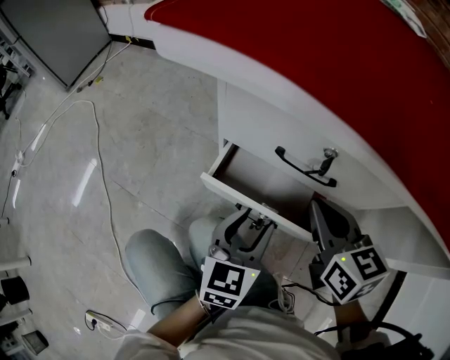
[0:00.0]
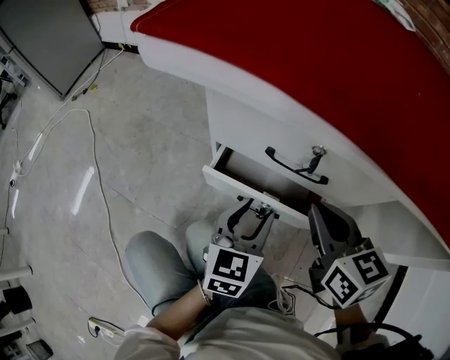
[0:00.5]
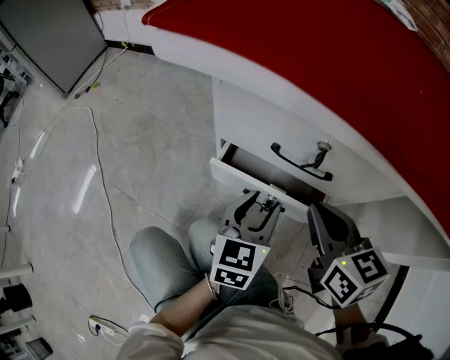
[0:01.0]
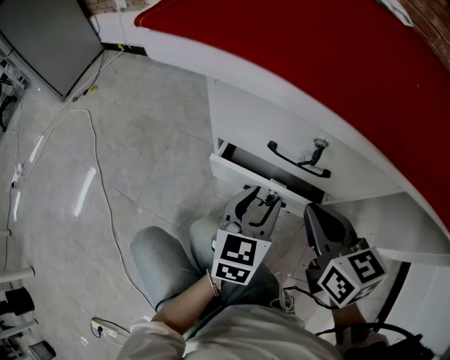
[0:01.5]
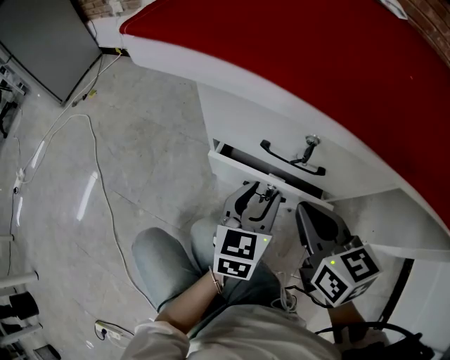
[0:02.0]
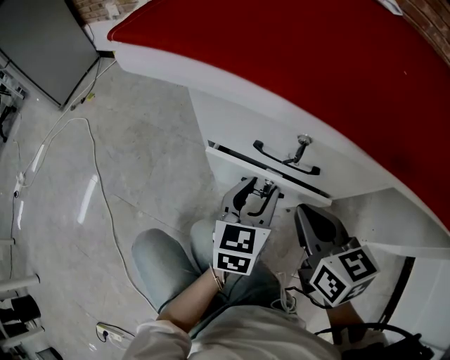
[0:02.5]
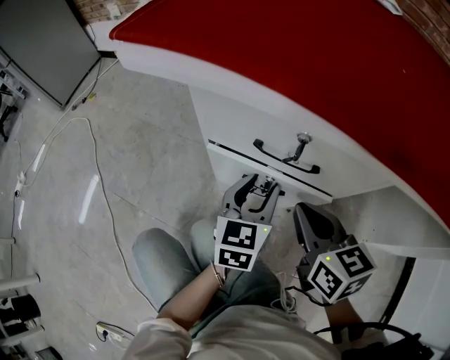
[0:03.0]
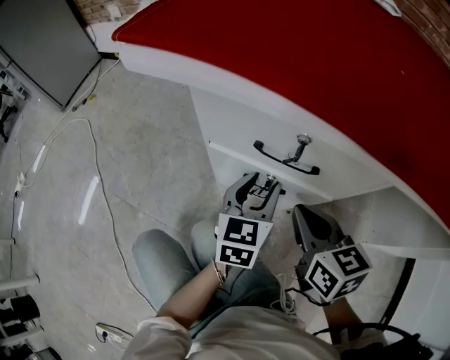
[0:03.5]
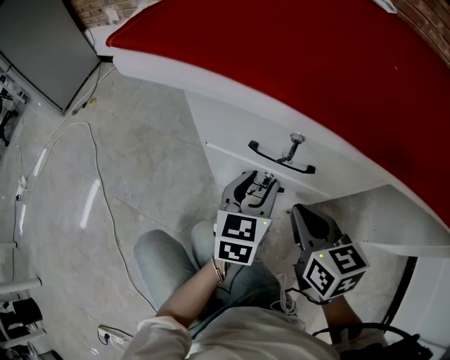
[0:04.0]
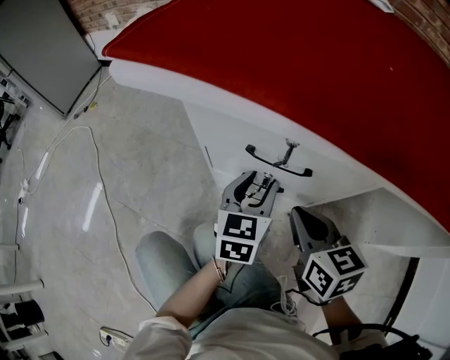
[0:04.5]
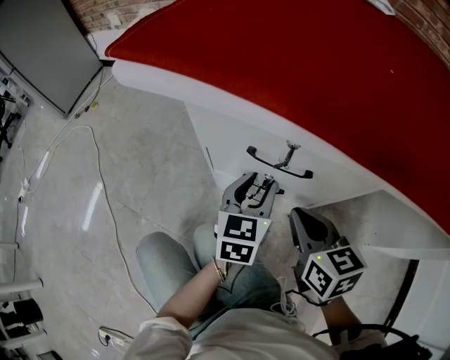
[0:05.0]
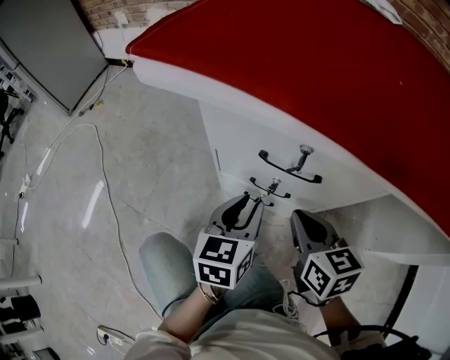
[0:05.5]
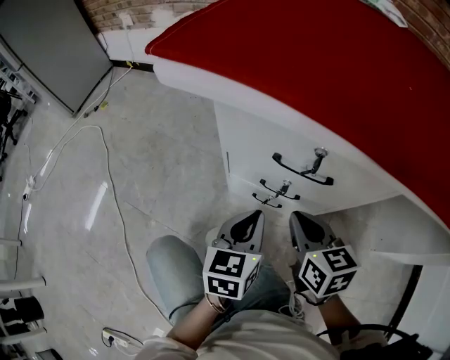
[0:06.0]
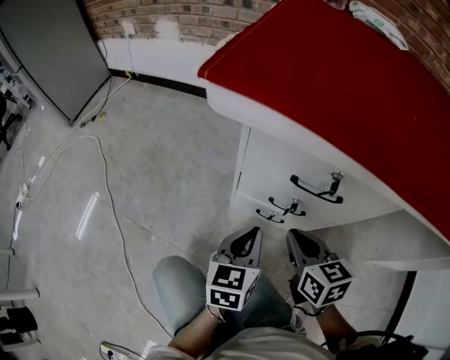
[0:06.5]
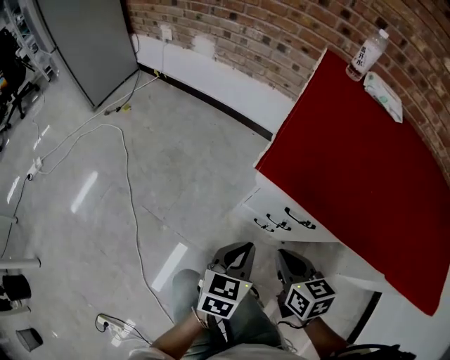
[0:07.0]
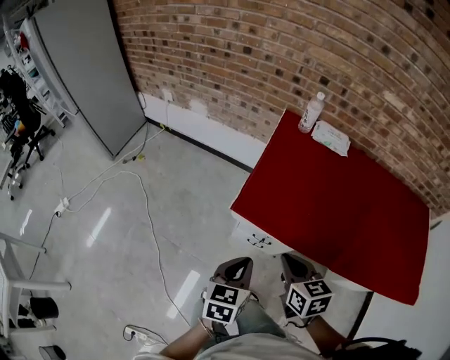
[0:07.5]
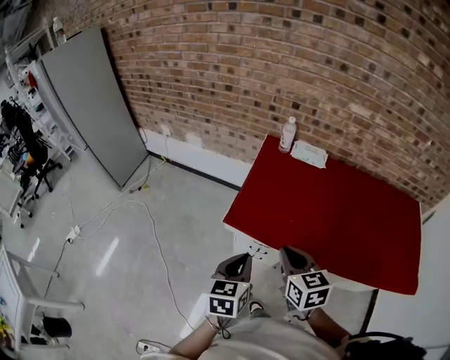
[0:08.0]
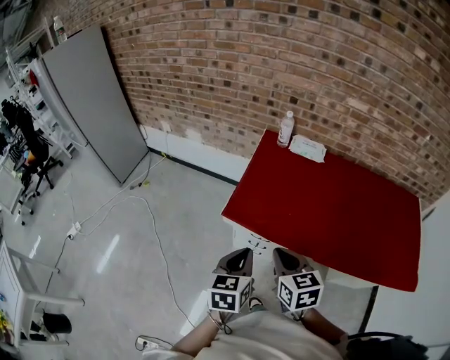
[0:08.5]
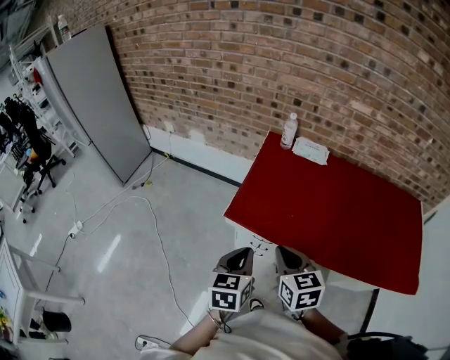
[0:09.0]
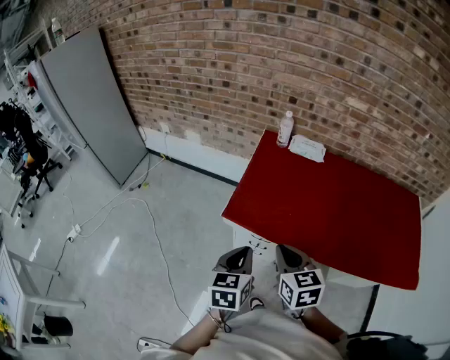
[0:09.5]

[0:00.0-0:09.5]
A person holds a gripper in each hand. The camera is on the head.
0:00.0 to 0:02.0: The left gripper goes roughly 5 cm forward.
0:02.0 to 0:04.0: The grippers move only a little.
0:04.0 to 0:05.5: The left gripper moves approximately 5 cm.
0:05.5 to 0:07.5: Both grippers travel together upward, about 40 cm. The left gripper closes its fingers.
0:07.5 to 0:09.5: The grippers both shift upward by roughly 10 cm.

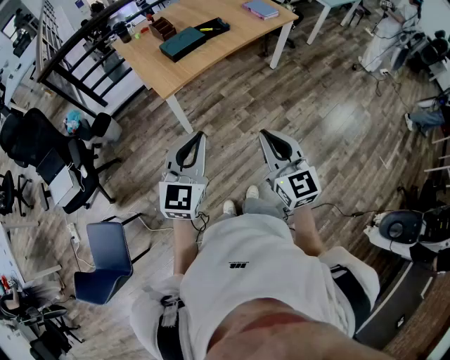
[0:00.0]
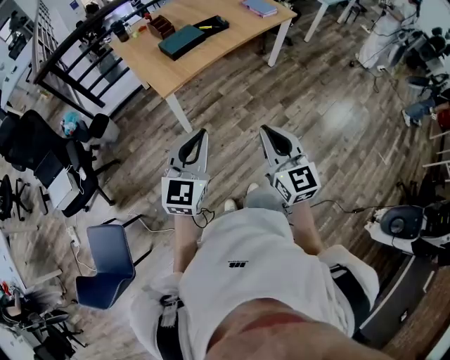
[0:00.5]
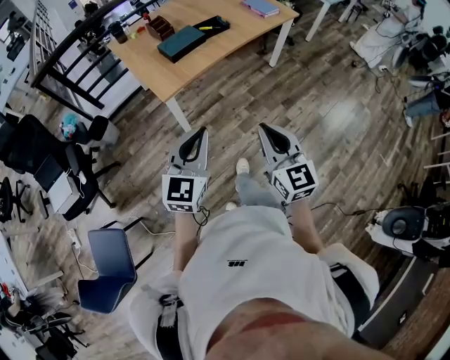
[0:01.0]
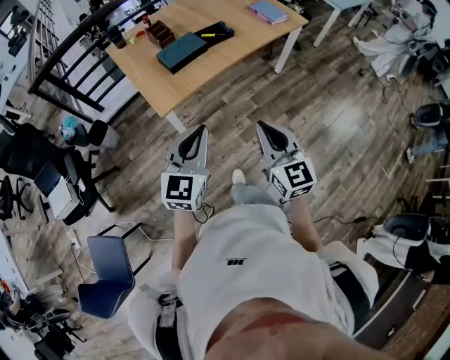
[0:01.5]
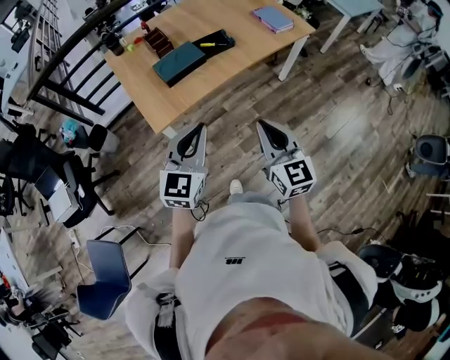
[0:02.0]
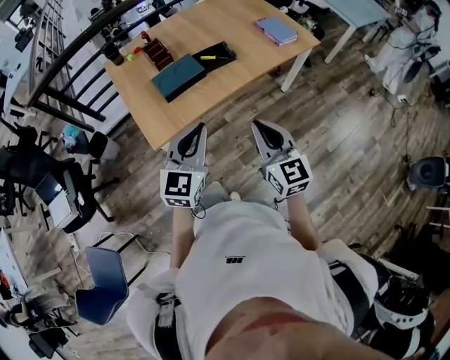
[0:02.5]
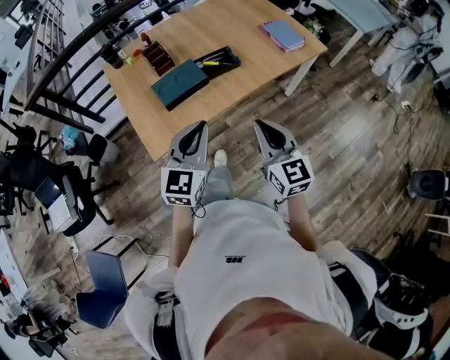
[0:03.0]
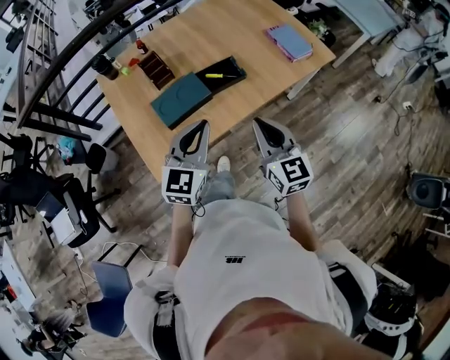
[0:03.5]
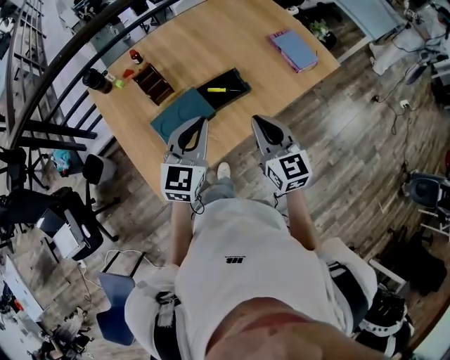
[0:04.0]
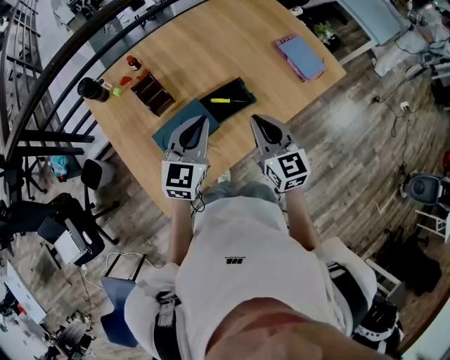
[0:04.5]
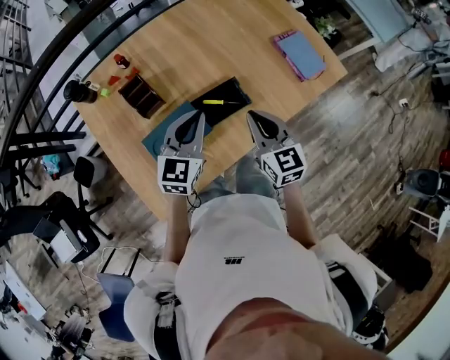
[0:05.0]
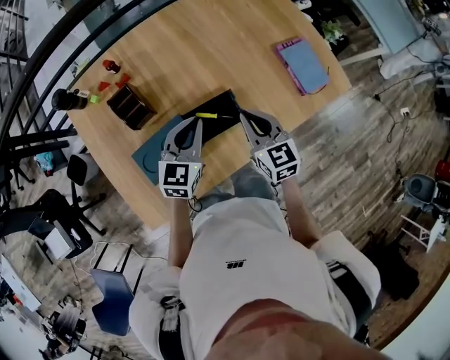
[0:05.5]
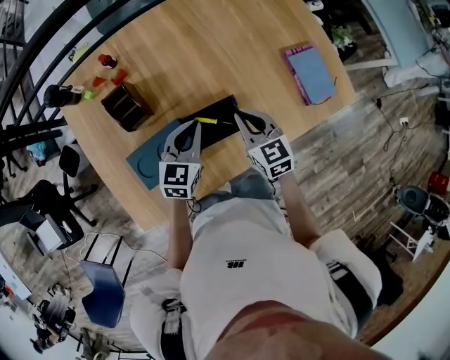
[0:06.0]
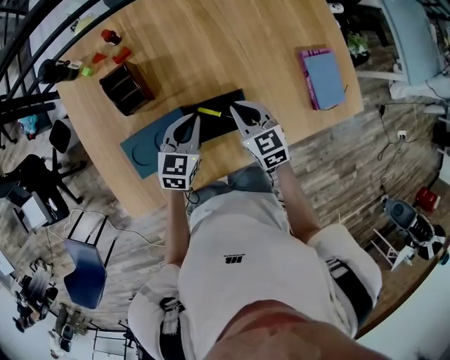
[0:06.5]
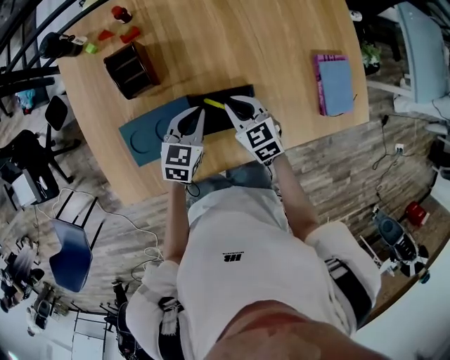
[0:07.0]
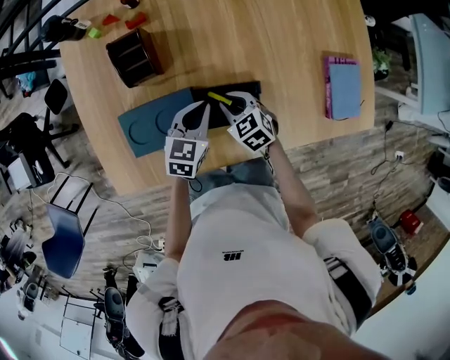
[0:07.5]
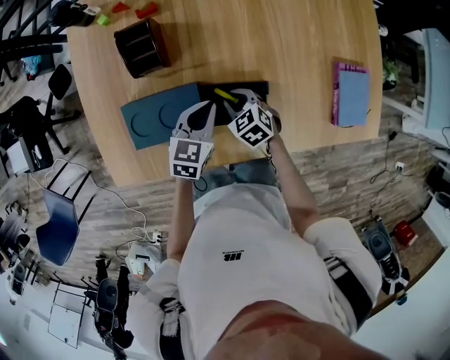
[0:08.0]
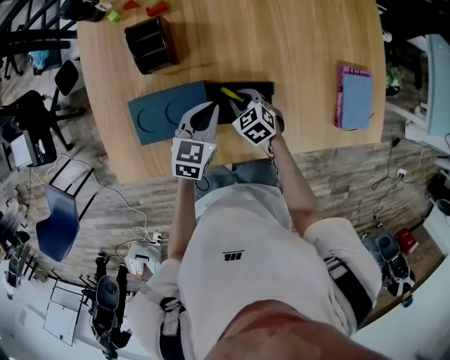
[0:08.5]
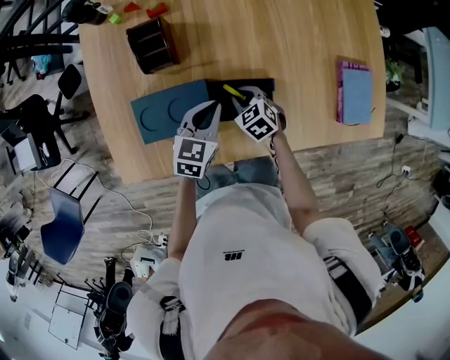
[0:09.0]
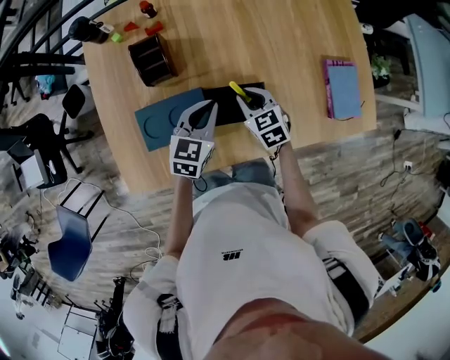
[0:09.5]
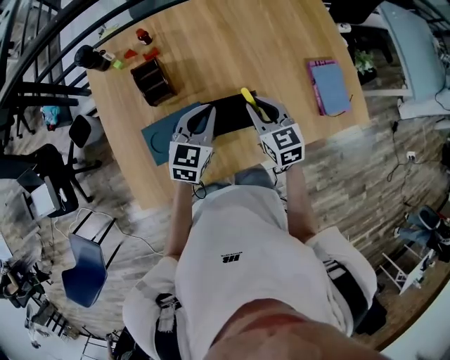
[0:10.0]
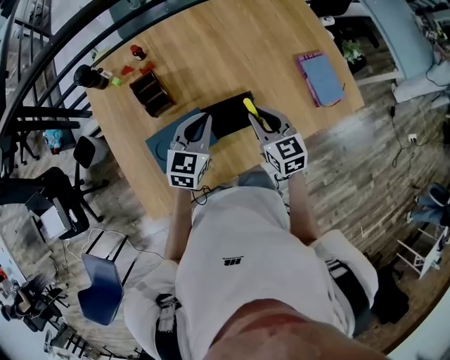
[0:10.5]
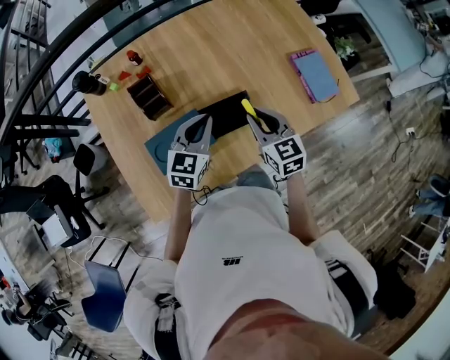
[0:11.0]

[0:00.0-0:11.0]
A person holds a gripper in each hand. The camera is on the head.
0:00.0 to 0:02.0: Both grippers move forward, approximately 30 cm.
0:02.0 to 0:03.5: The grippers both shift forward by roughly 30 cm.
0:03.5 to 0:05.5: The two grippers go approximately 35 cm forward.
0:05.5 to 0:07.5: The left gripper travels downward by about 15 cm, and swivels about 20 degrees. The right gripper heads downward and to the left, covering roughly 25 cm, and swivels approximately 50 degrees.
0:07.5 to 0:09.0: There are only small adjustments of the grippers.
0:09.0 to 0:11.0: The left gripper shifts approximately 15 cm upward, and swivels some 20 degrees. Meanwhile the right gripper shifts about 25 cm upward, and tilts its fingers roughly 30 degrees upward.

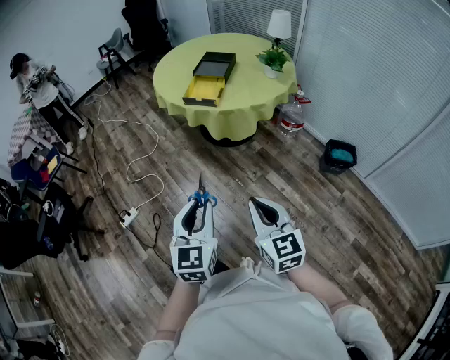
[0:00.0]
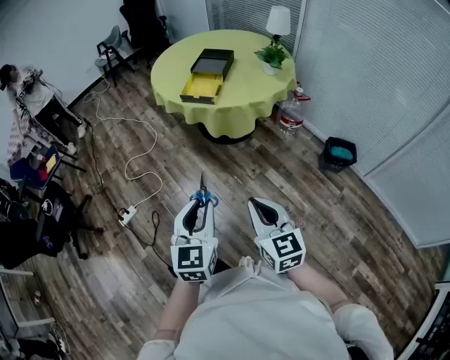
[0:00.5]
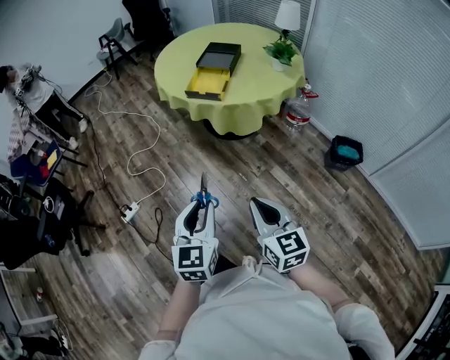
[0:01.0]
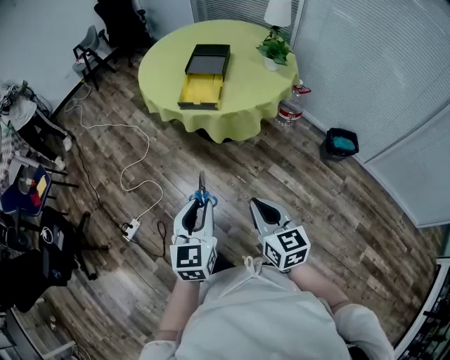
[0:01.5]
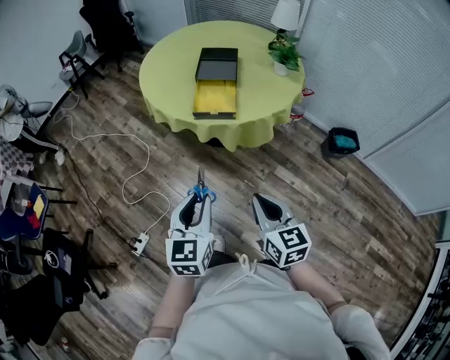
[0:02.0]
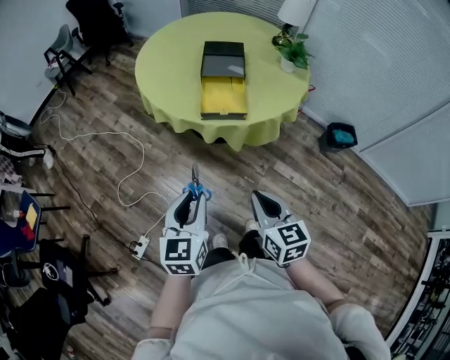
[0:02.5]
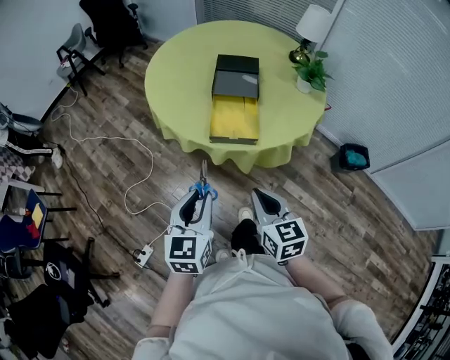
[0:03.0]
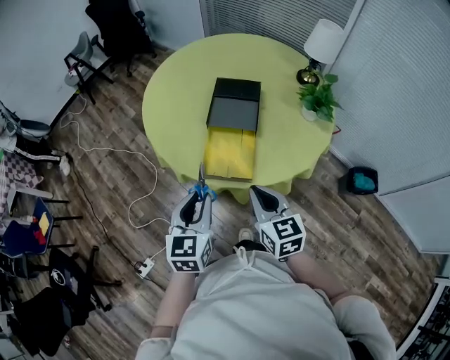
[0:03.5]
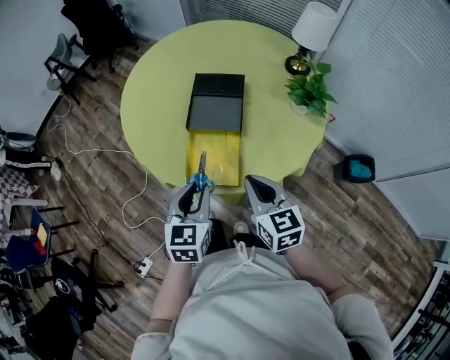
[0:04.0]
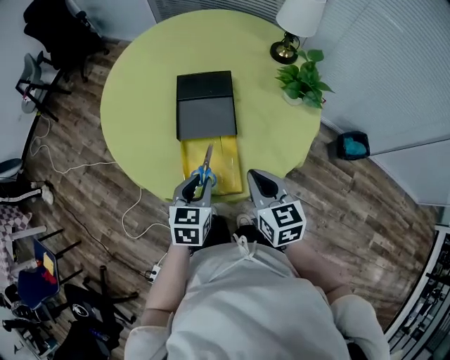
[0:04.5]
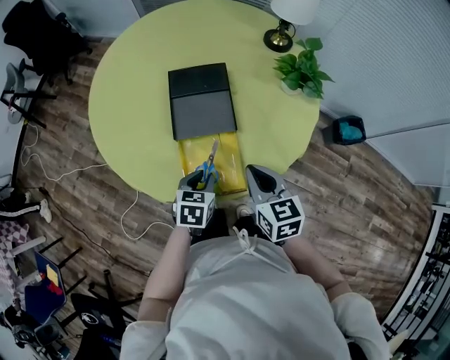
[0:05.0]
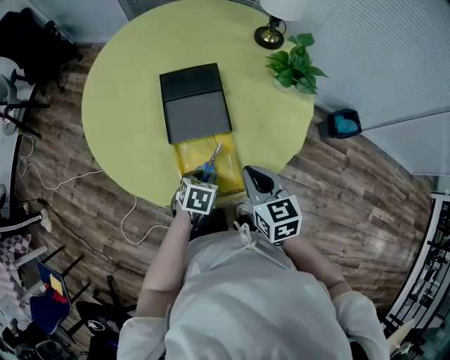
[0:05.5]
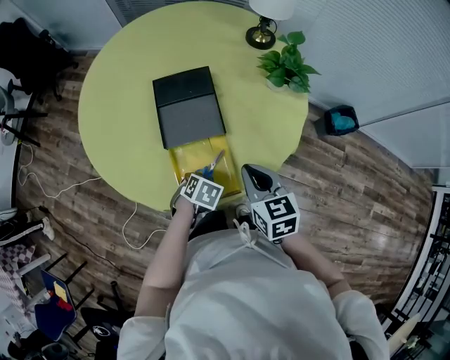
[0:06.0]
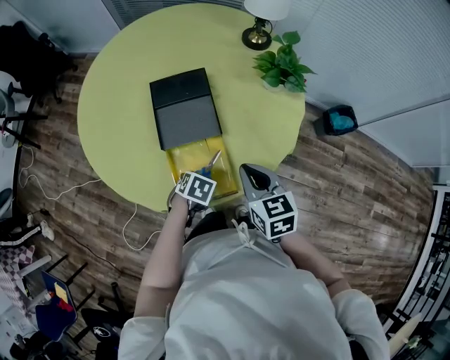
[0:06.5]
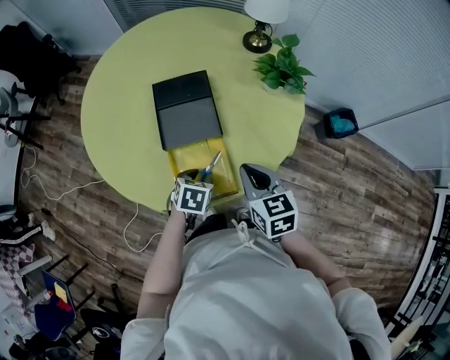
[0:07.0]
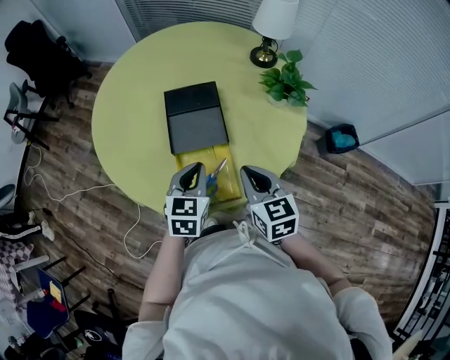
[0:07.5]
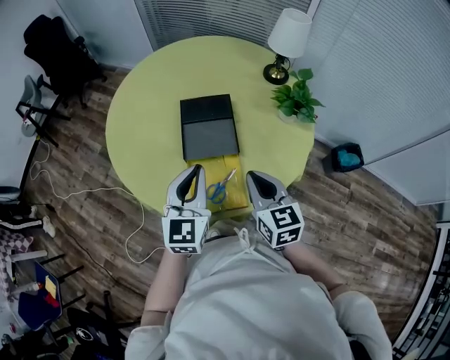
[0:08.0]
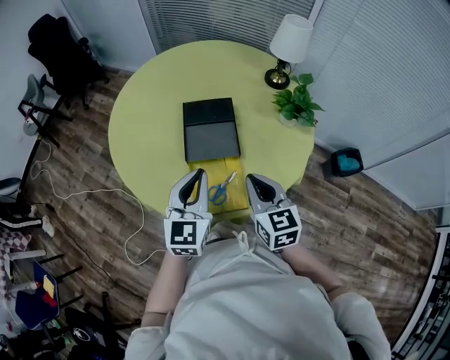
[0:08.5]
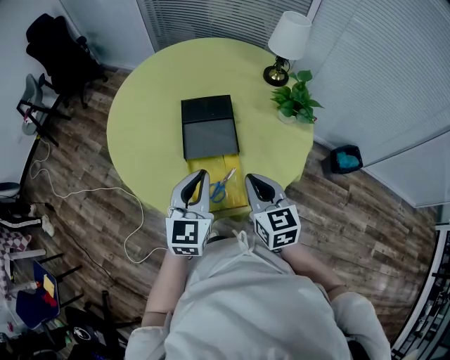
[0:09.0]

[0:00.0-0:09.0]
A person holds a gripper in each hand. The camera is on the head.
0:00.0 to 0:02.0: The two grippers go roughly 30 cm forward and to the left.
0:02.0 to 0:04.5: The two grippers travel together, forward, some 50 cm. The left gripper turns by some 30 degrees.
0:04.5 to 0:07.0: The left gripper travels downward by approximately 10 cm, and turns by about 30 degrees.
0:07.0 to 0:09.0: The left gripper is displaced upward by about 25 cm, tilts its fingers some 50 degrees upward, and closes its fingers. The right gripper goes approximately 5 cm upward.
